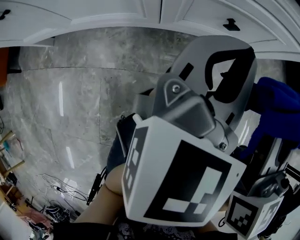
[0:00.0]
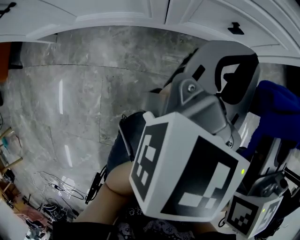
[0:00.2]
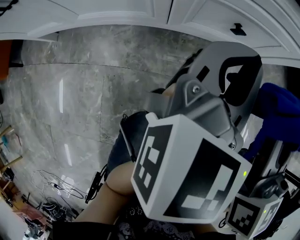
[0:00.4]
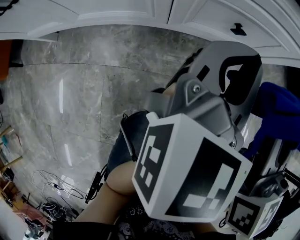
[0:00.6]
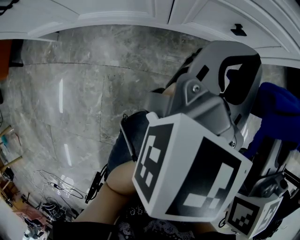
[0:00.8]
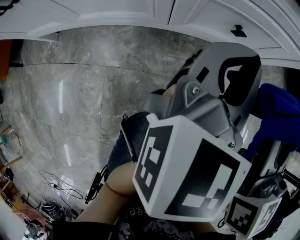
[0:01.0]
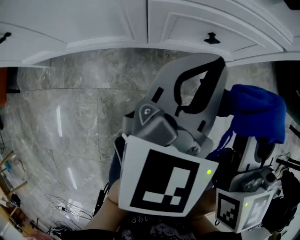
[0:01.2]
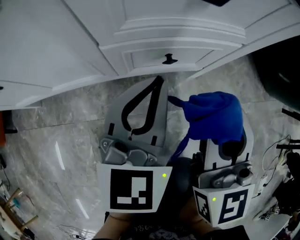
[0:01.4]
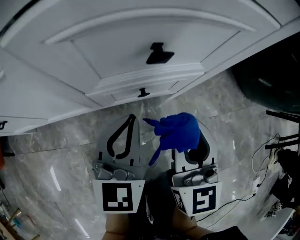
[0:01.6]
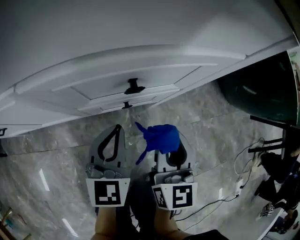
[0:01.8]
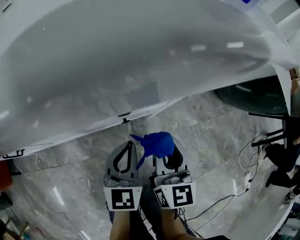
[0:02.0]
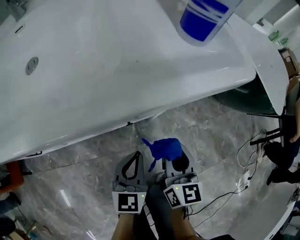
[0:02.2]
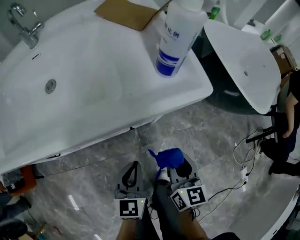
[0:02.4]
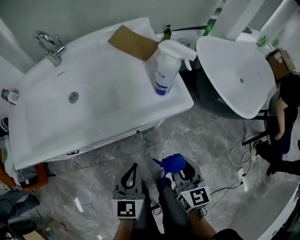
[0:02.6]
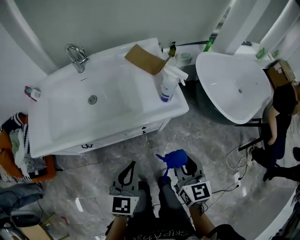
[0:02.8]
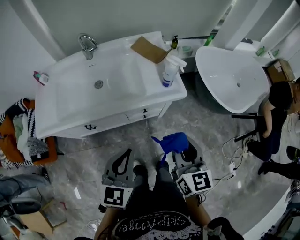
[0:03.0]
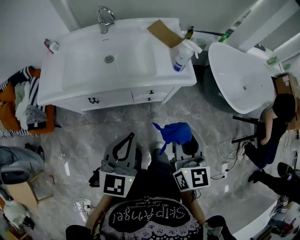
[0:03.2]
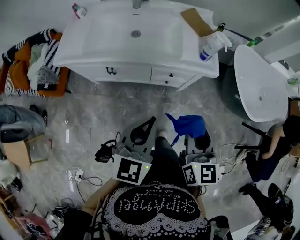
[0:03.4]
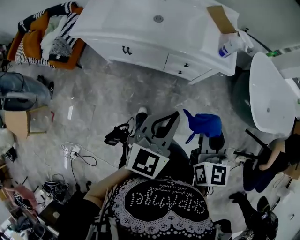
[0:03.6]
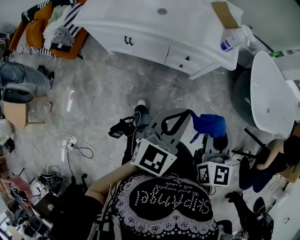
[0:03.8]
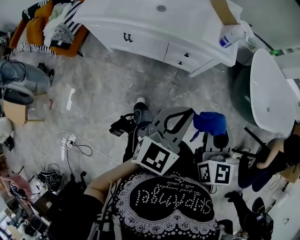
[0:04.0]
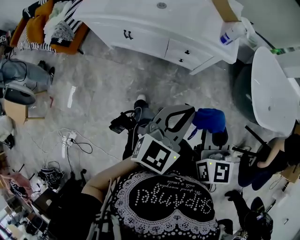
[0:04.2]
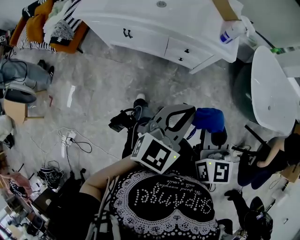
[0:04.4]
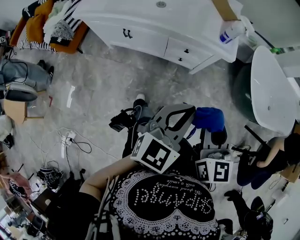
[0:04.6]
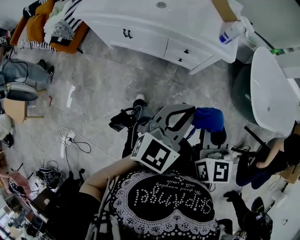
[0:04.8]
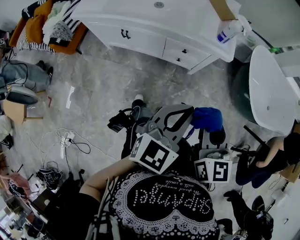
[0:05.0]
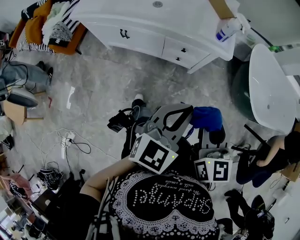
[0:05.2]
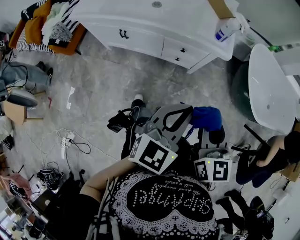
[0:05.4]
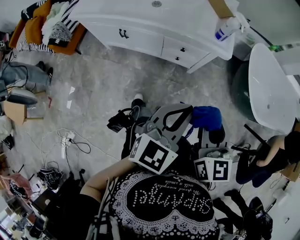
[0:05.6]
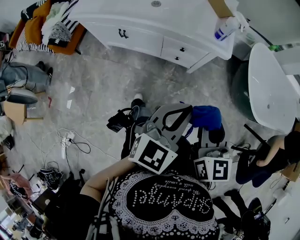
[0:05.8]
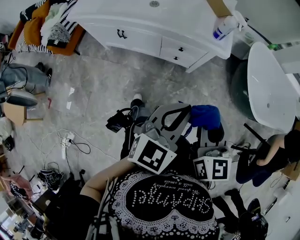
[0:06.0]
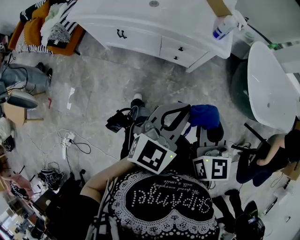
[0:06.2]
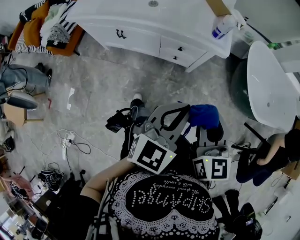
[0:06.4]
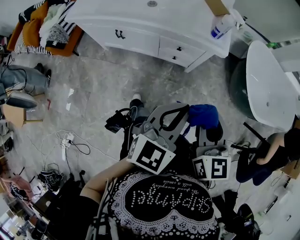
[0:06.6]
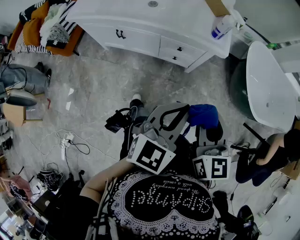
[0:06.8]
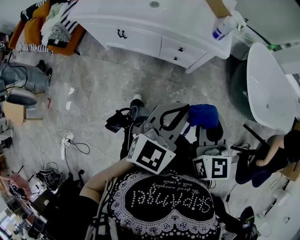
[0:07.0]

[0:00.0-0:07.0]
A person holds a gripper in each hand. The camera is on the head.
0:00.0 to 0:01.4: The grippers move only a little.
0:01.4 to 0:02.8: Both grippers move upward, about 50 cm.
0:02.8 to 0:04.2: The left gripper goes roughly 25 cm backward, to the right and upward. Meanwhile the right gripper is displaced backward and upward by about 20 cm, and changes its angle by some 20 degrees.
0:04.2 to 0:05.6: The grippers move only a little.
0:05.6 to 0:07.0: Neither gripper changes place.

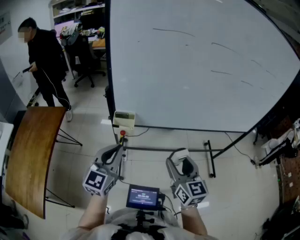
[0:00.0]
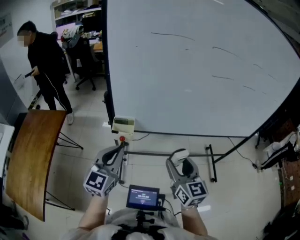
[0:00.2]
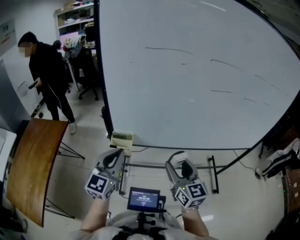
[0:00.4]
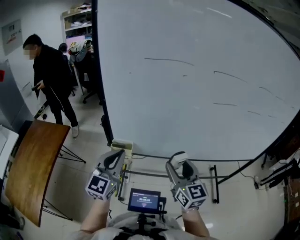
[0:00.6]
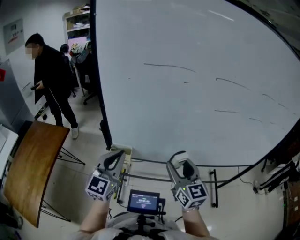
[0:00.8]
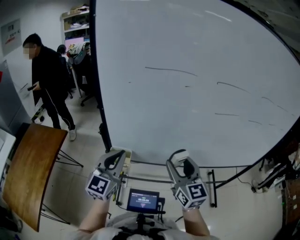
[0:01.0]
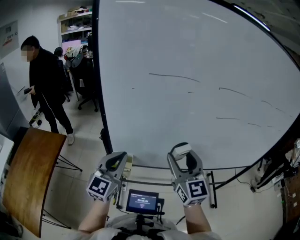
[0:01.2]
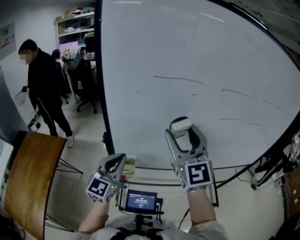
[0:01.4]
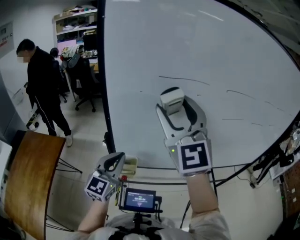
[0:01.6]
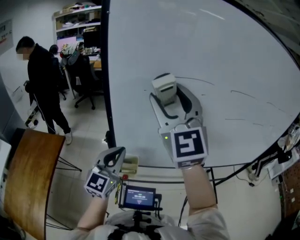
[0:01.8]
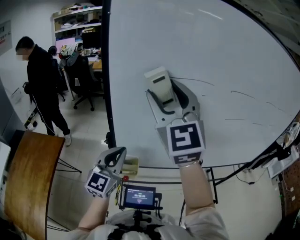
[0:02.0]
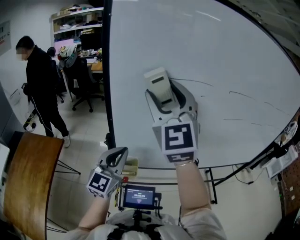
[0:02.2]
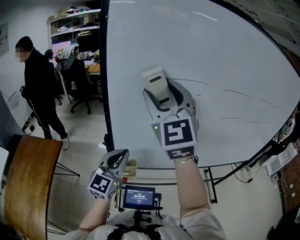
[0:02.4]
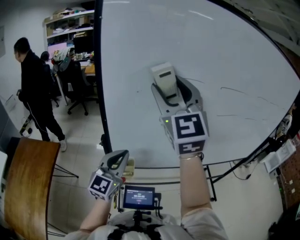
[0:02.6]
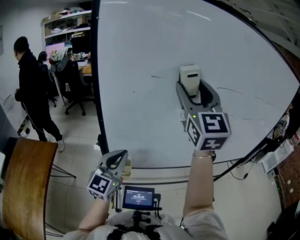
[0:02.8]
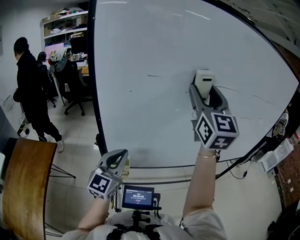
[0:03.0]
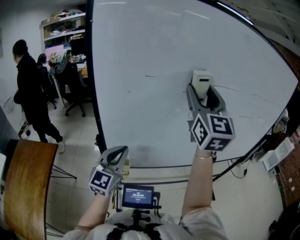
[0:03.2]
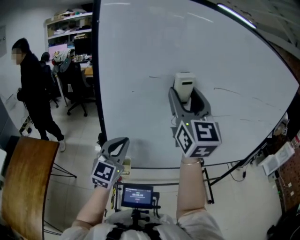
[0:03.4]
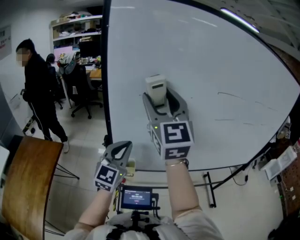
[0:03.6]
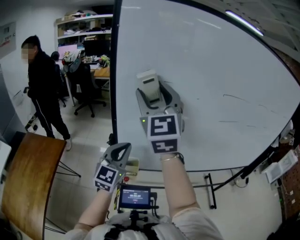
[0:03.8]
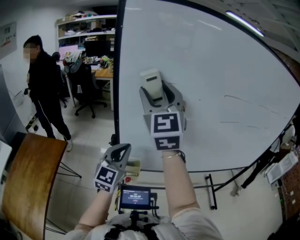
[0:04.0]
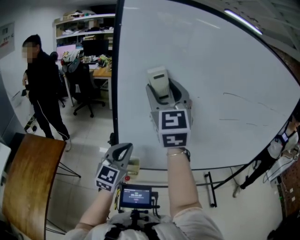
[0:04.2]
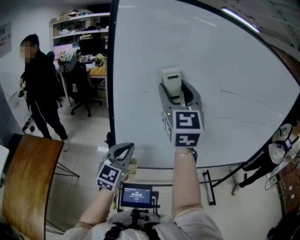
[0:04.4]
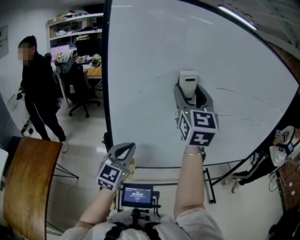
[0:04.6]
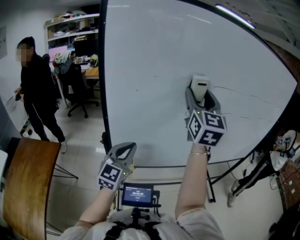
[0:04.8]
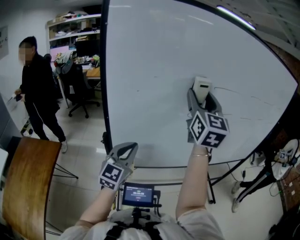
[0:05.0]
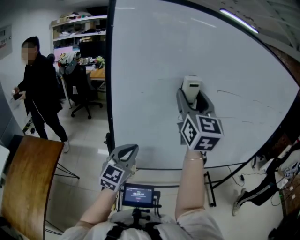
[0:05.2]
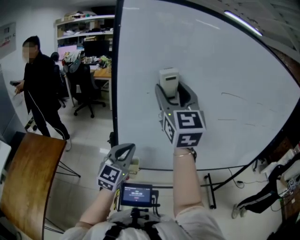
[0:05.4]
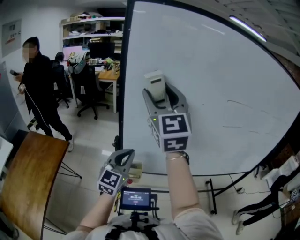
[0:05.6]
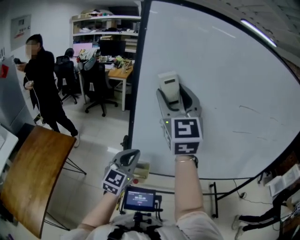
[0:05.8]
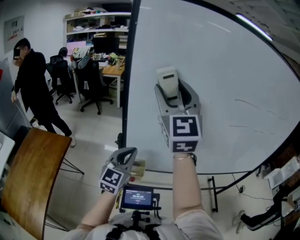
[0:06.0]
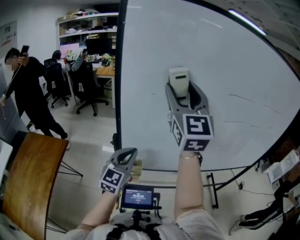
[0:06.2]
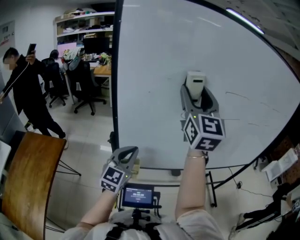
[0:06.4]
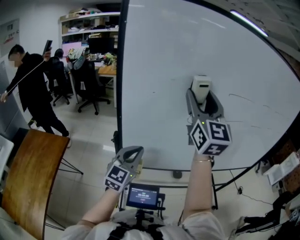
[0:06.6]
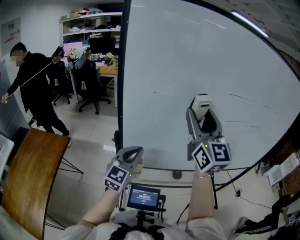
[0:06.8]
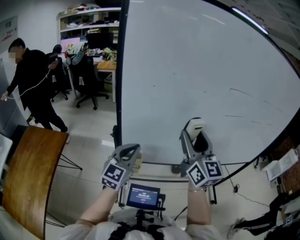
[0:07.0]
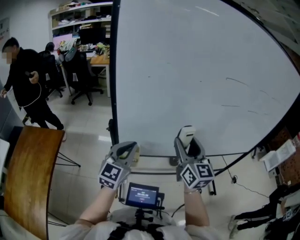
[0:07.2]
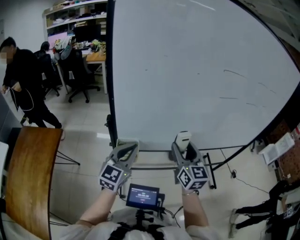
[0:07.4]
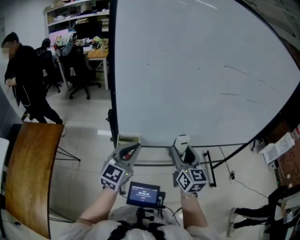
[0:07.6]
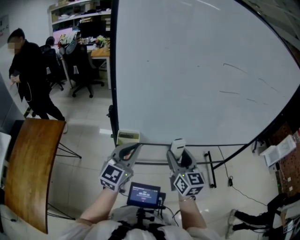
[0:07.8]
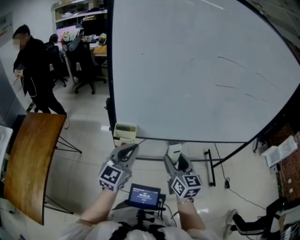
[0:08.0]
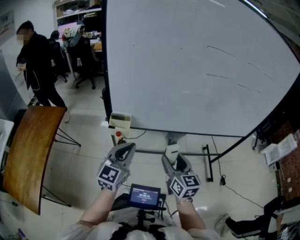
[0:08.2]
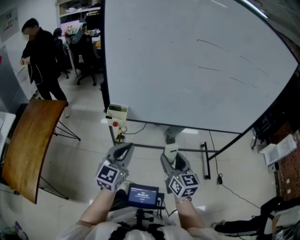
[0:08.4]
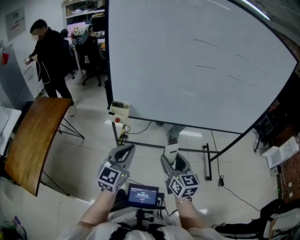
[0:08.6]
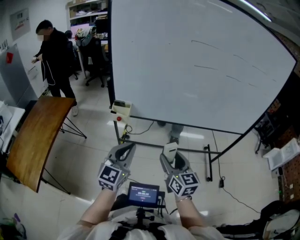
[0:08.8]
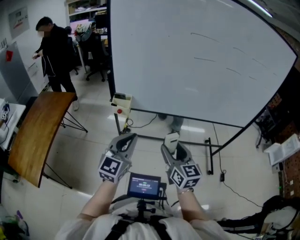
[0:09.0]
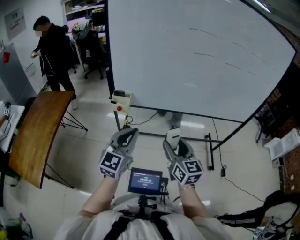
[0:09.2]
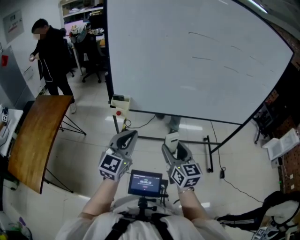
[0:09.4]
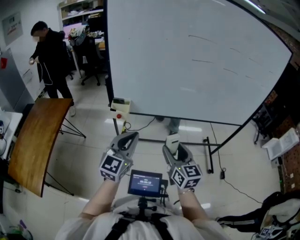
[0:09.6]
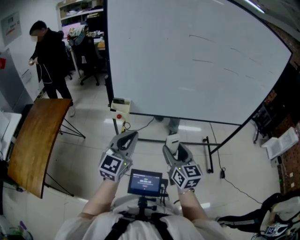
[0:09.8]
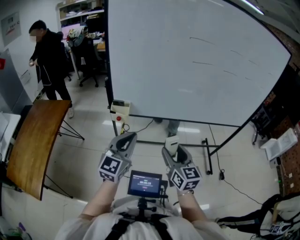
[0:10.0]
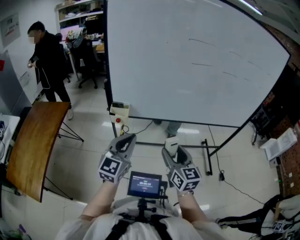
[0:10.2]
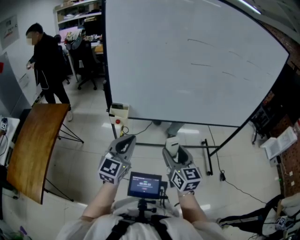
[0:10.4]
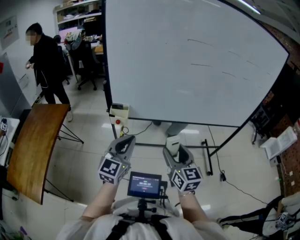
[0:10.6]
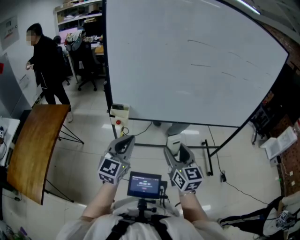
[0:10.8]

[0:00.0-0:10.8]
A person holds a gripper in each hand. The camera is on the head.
0:00.0 to 0:01.6: The left gripper is displaced forward by roughly 15 cm. The right gripper heads upward and forward, covering approximately 35 cm, and rotates roughly 40 degrees.
0:01.6 to 0:03.0: The right gripper travels to the right and forward by roughly 15 cm, and changes its angle by about 20 degrees.
0:03.0 to 0:04.6: The right gripper goes to the left and returns, about 20 cm each way.
0:04.6 to 0:06.2: The right gripper swings left and right, approximately 20 cm each way, with 2 reversals.
0:06.2 to 0:07.8: The right gripper goes some 35 cm downward, and changes its angle by about 40 degrees; the left gripper moves backward, approximately 10 cm.
0:07.8 to 0:09.2: The grippers both shift backward and to the right by some 20 cm.
0:09.2 to 0:10.8: The grippers stay close to where they were, moving slightly.

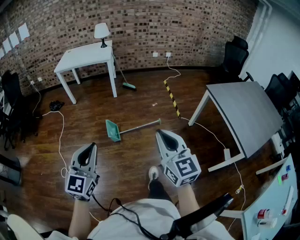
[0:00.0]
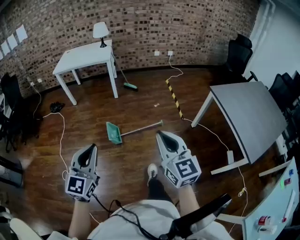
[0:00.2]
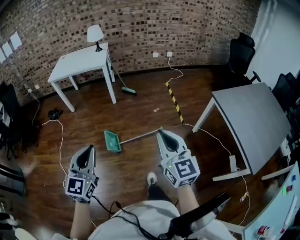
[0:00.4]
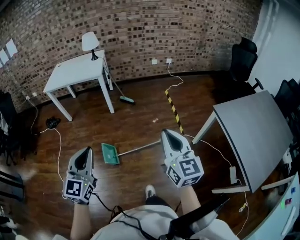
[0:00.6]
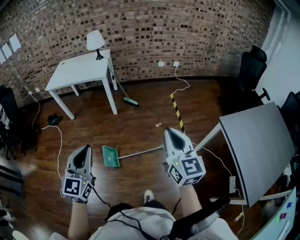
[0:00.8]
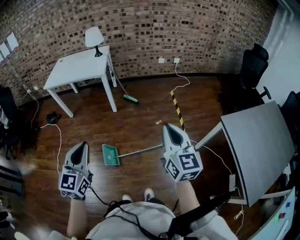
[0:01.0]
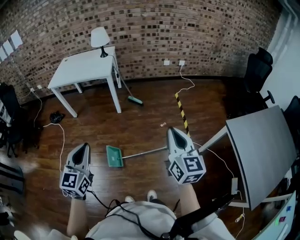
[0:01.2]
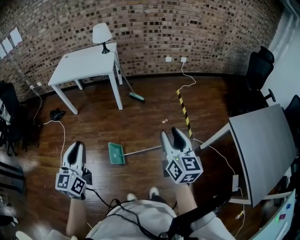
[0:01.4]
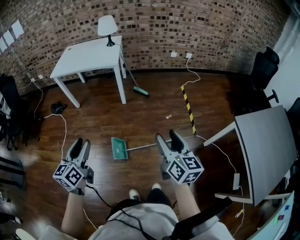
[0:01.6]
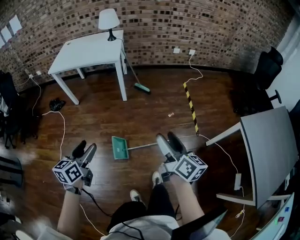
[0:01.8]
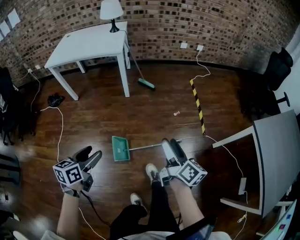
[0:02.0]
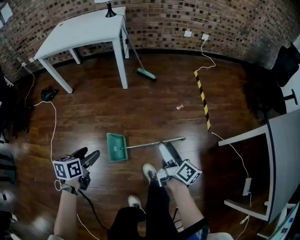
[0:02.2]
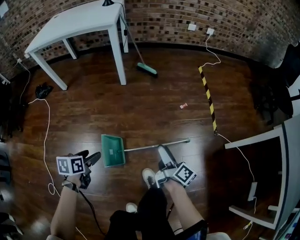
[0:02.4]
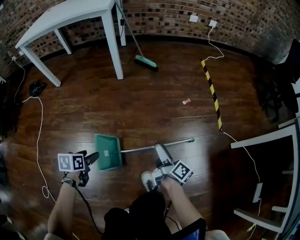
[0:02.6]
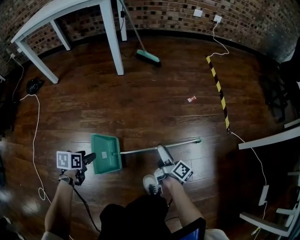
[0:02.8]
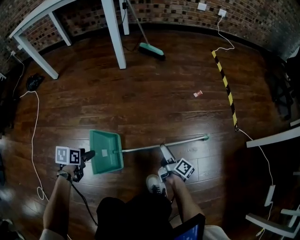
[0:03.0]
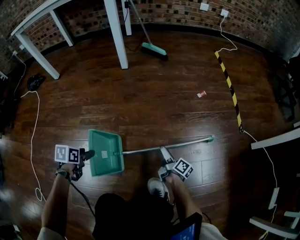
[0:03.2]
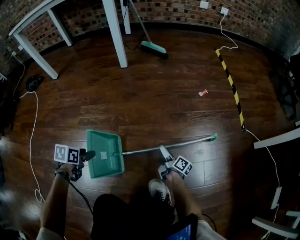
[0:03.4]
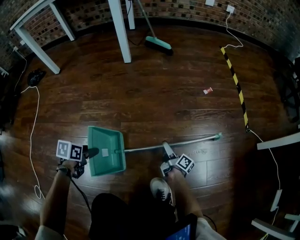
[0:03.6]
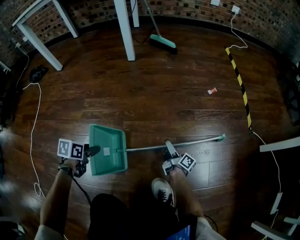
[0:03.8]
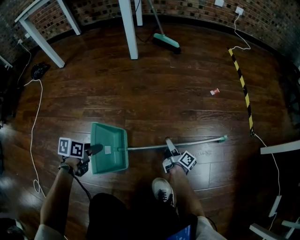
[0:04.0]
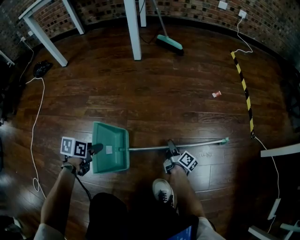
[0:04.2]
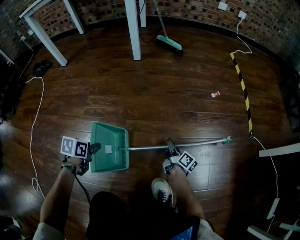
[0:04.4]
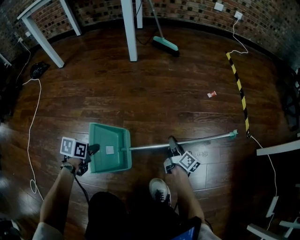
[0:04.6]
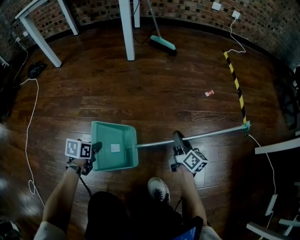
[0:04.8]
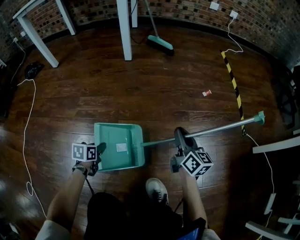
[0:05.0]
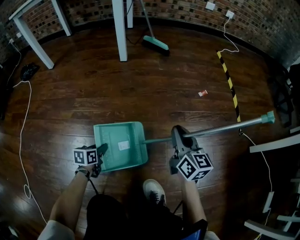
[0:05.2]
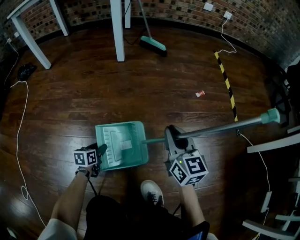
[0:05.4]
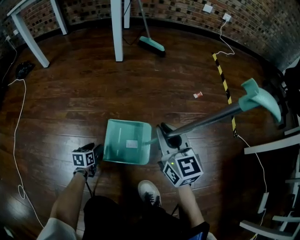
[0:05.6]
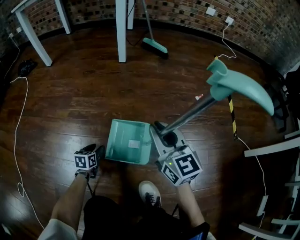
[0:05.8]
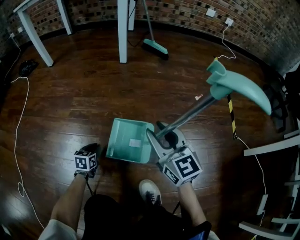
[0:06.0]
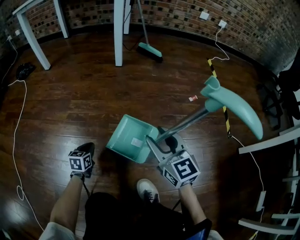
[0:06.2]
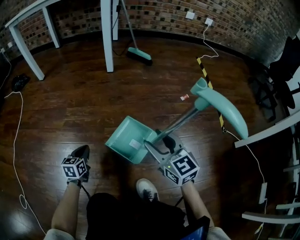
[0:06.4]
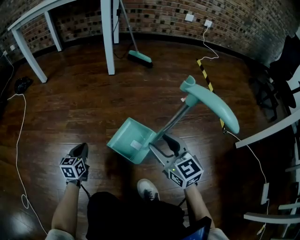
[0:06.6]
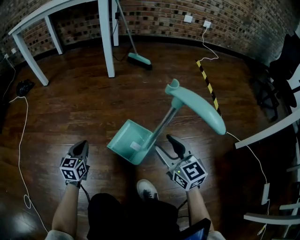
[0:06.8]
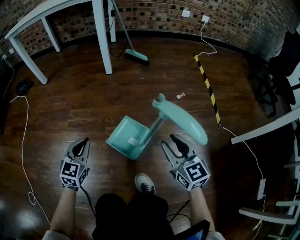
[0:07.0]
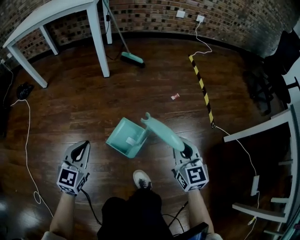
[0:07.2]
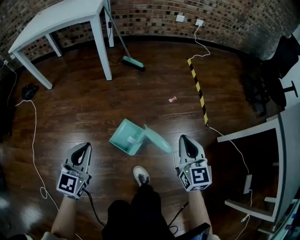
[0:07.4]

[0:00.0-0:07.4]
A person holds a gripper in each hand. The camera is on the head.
0:00.0 to 0:01.4: The grippers both shift forward by approximately 40 cm. The left gripper swivels about 20 degrees, while the right gripper opens.
0:01.4 to 0:03.0: The two grippers go roughly 90 cm downward. The left gripper points its fingers approximately 70 degrees further downward, and opens its fingers. Meanwhile the right gripper rolls clockwise, seen from behind, by approximately 60 degrees, and opens.
0:03.0 to 0:04.4: The right gripper goes some 10 cm downward, and closes; the left gripper shifts approximately 5 cm downward, and closes its fingers.
0:04.4 to 0:06.0: The right gripper is displaced upward by some 30 cm, and rolls counterclockwise, seen from behind, by about 70 degrees; the left gripper goes about 10 cm downward, turns by roughly 20 degrees, and opens, then closes once more.
0:06.0 to 0:07.4: The right gripper travels upward and to the right by approximately 30 cm, and changes its angle by approximately 30 degrees. Meanwhile the left gripper is displaced upward by about 60 cm, and tilts its fingers about 30 degrees upward.
